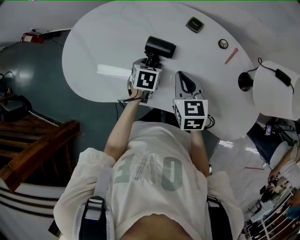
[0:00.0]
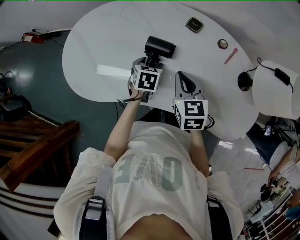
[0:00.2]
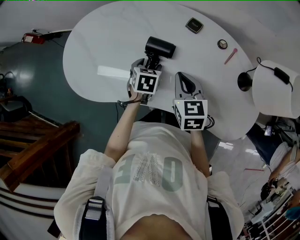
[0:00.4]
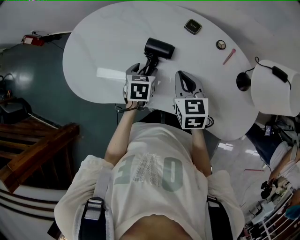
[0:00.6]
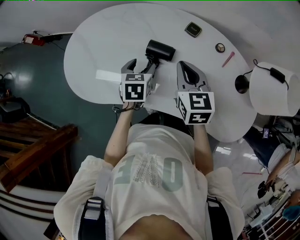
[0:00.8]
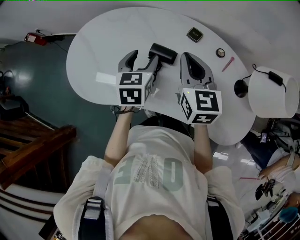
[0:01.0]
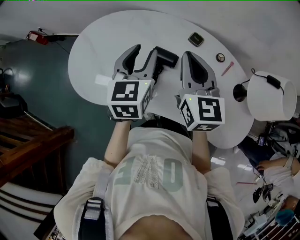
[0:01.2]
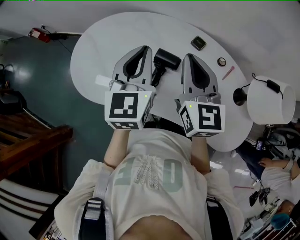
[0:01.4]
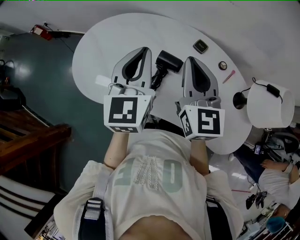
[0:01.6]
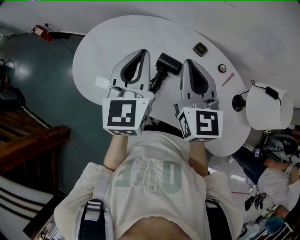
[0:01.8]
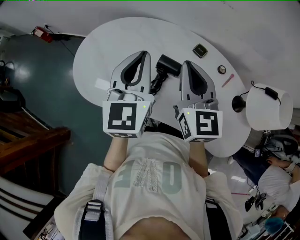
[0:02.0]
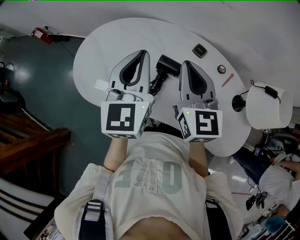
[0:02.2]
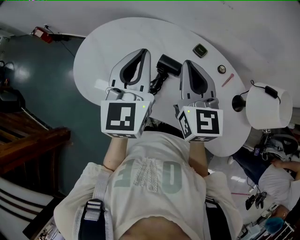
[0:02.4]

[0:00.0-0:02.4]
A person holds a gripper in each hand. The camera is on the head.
0:00.0 to 0:01.2: The right gripper goes approximately 15 cm upward, and changes its angle by approximately 20 degrees. Meanwhile the left gripper moves upward, approximately 25 cm, and tilts its fingers about 40 degrees upward.
0:01.2 to 0:02.4: The left gripper travels upward by approximately 10 cm, and closes its fingers.

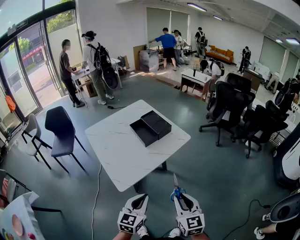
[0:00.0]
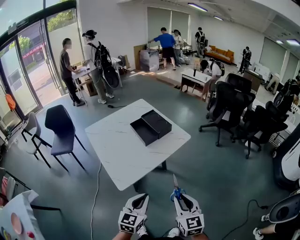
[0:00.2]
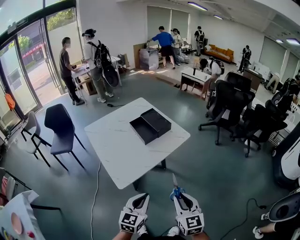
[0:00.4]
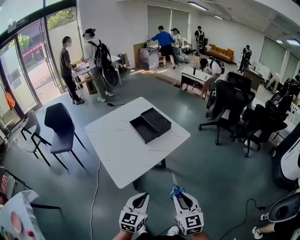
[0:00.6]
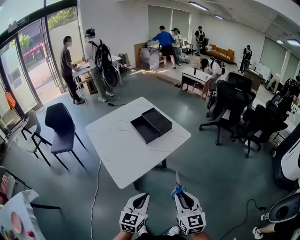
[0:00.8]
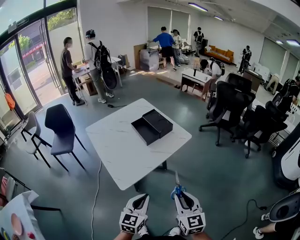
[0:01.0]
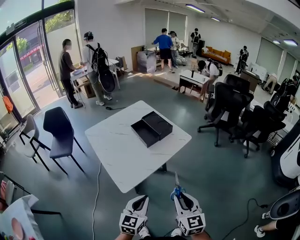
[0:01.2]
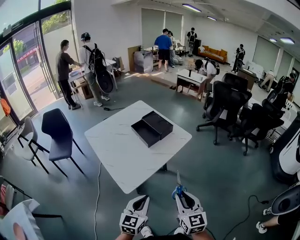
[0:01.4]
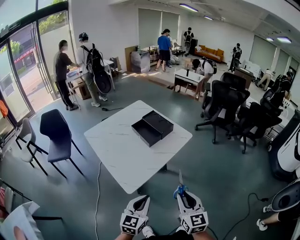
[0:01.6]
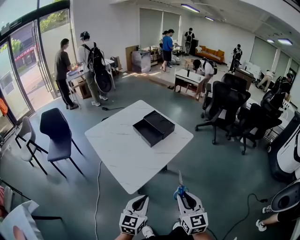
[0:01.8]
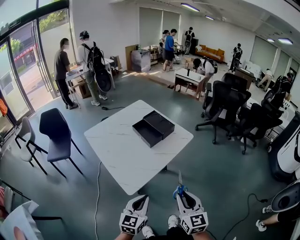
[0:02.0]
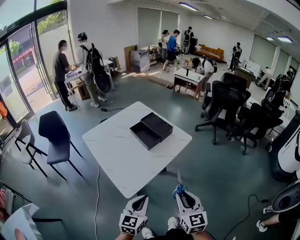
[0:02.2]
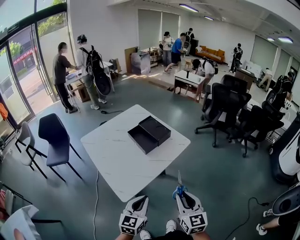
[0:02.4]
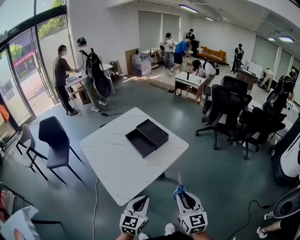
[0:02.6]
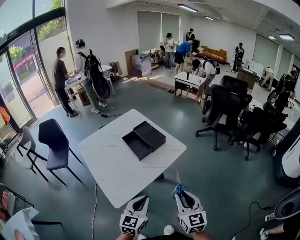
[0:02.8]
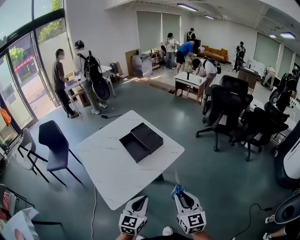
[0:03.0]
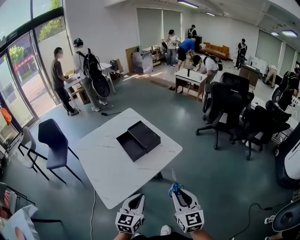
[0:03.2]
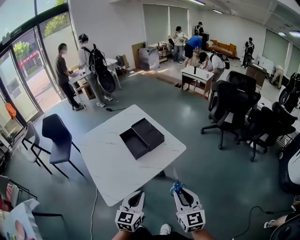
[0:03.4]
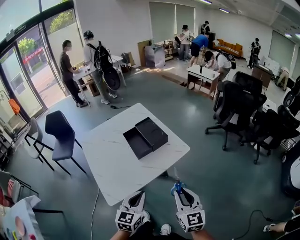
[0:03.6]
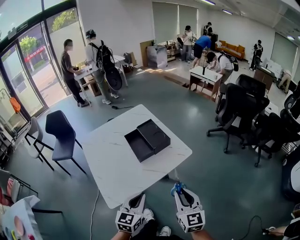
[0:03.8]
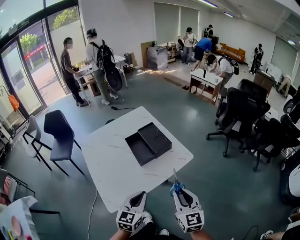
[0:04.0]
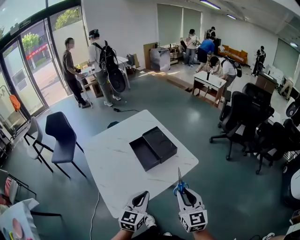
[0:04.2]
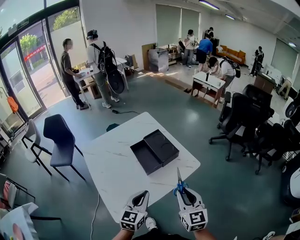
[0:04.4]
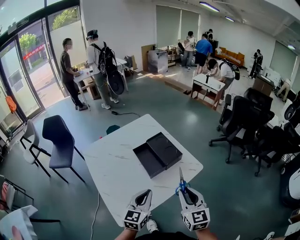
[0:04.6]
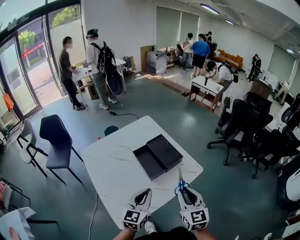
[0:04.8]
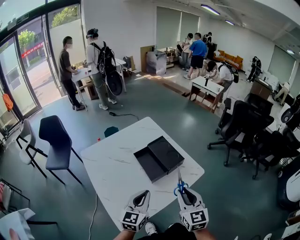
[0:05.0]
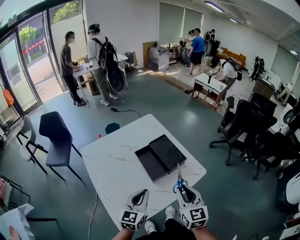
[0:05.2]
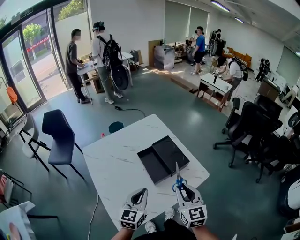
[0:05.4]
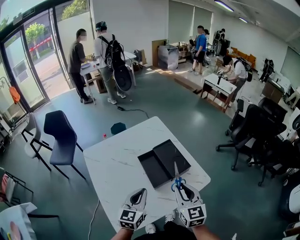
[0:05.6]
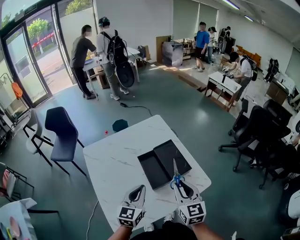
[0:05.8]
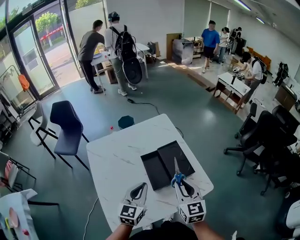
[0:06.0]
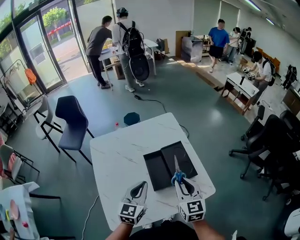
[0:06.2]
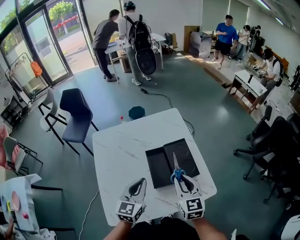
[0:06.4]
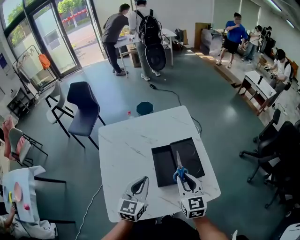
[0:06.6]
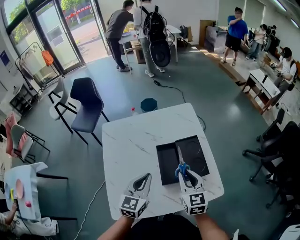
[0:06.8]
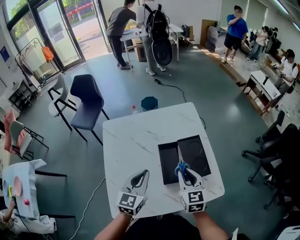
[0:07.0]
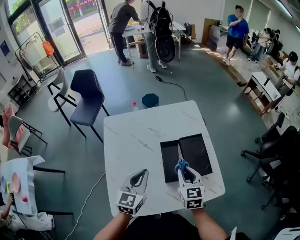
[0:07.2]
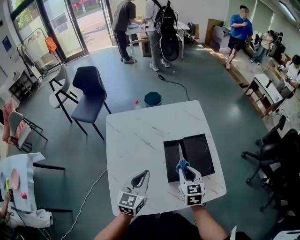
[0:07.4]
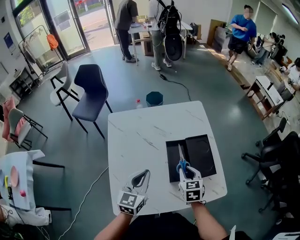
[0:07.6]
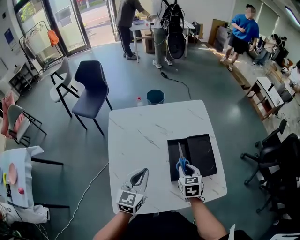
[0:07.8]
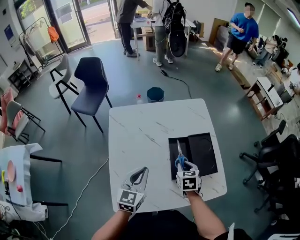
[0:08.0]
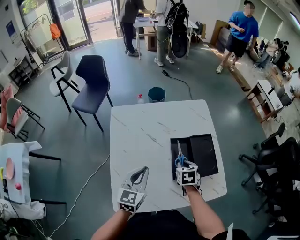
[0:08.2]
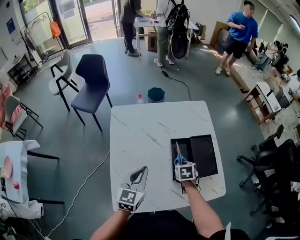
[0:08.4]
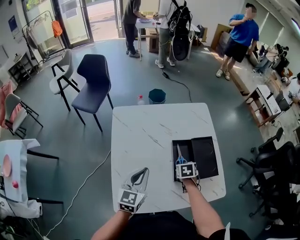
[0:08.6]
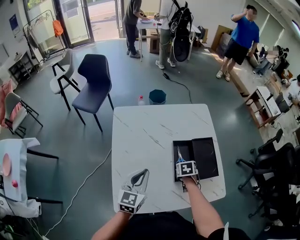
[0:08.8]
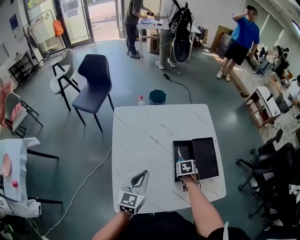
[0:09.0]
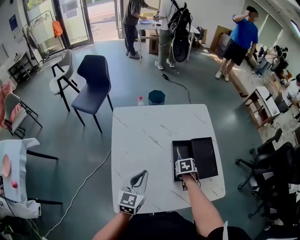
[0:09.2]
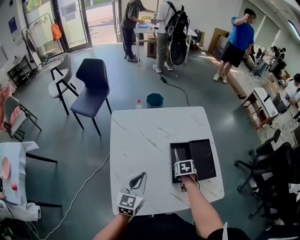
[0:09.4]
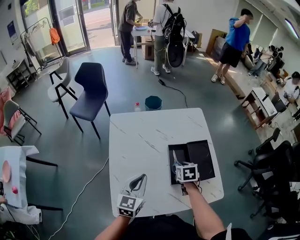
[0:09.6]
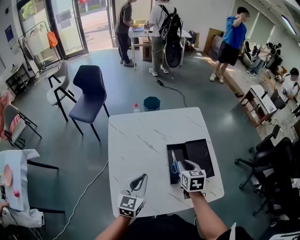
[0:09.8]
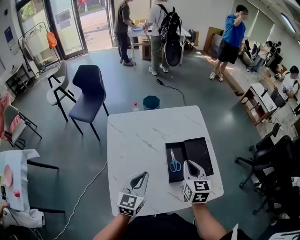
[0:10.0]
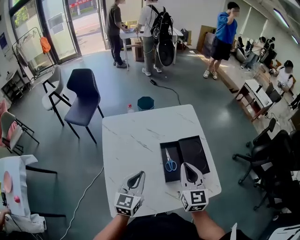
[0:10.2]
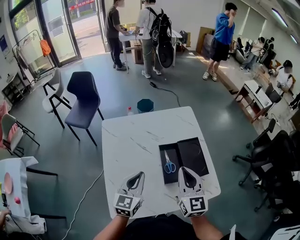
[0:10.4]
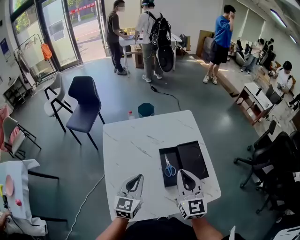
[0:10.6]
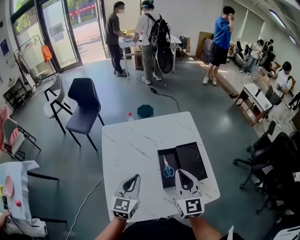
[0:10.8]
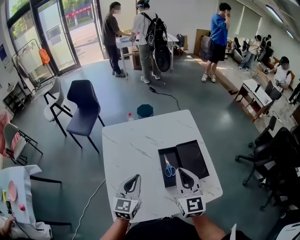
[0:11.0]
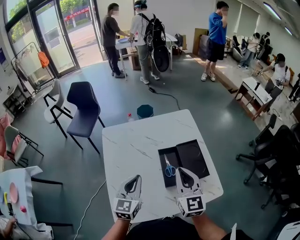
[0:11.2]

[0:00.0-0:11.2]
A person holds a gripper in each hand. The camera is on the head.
0:00.0 to 0:01.6: Both grippers travel together to the left, some 5 cm.
0:01.6 to 0:03.2: The two grippers go approximately 20 cm forward and to the right.
0:03.2 to 0:04.8: Both grippers travel together forward and to the left, some 20 cm.
0:04.8 to 0:06.4: The grippers both shift forward by roughly 15 cm. The left gripper changes its angle by some 20 degrees, while the right gripper rotates roughly 20 degrees.
0:06.4 to 0:08.0: The right gripper is displaced downward, to the left and forward by some 15 cm, and angles its fingers downward, by some 30 degrees. The left gripper heads to the left, covering about 10 cm.
0:08.0 to 0:09.6: The right gripper reaches approximately 10 cm downward, then returns.
0:09.6 to 0:11.2: The right gripper heads upward, covering approximately 20 cm, tips its fingers upward by approximately 50 degrees, and closes up; the left gripper moves some 5 cm.

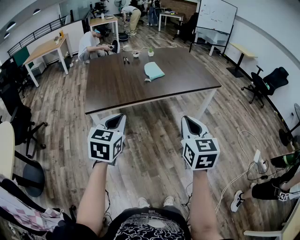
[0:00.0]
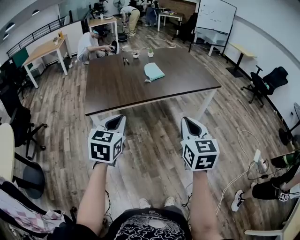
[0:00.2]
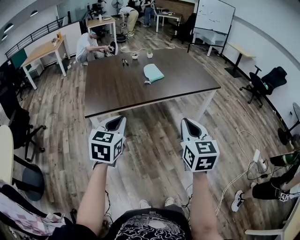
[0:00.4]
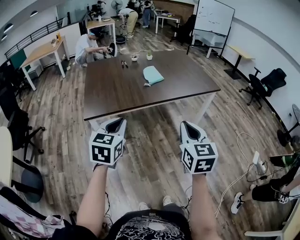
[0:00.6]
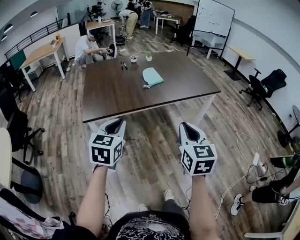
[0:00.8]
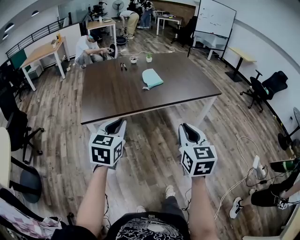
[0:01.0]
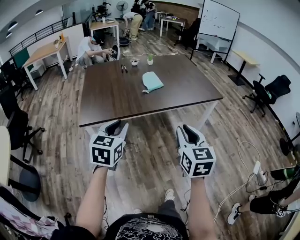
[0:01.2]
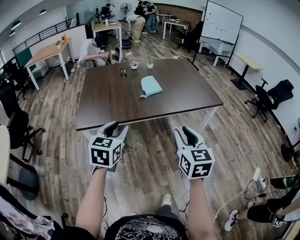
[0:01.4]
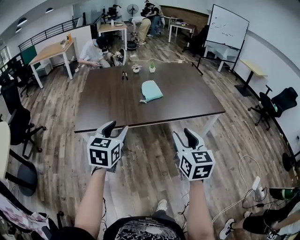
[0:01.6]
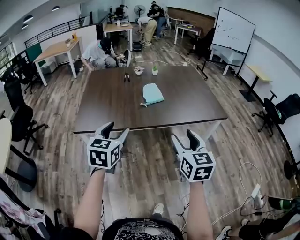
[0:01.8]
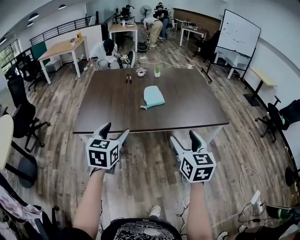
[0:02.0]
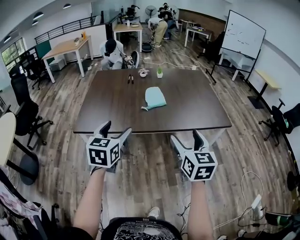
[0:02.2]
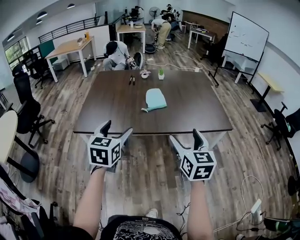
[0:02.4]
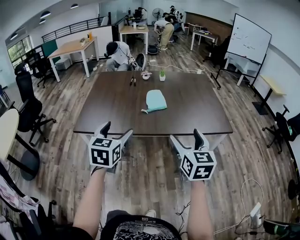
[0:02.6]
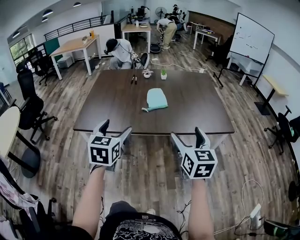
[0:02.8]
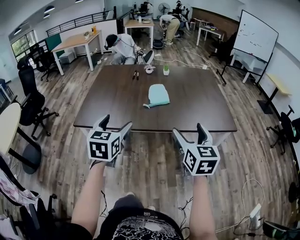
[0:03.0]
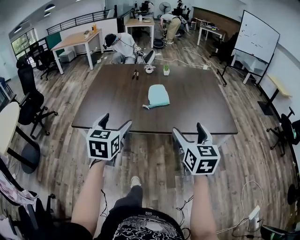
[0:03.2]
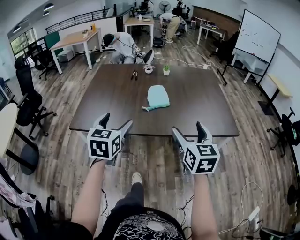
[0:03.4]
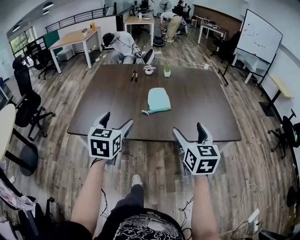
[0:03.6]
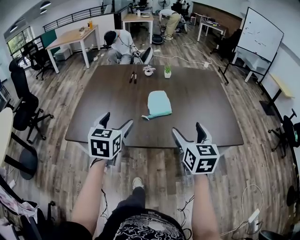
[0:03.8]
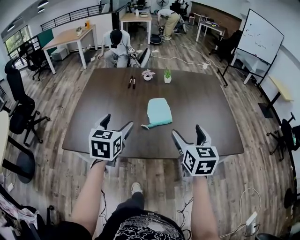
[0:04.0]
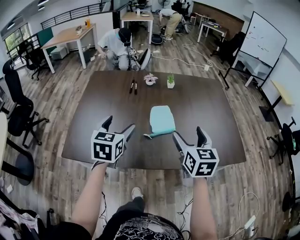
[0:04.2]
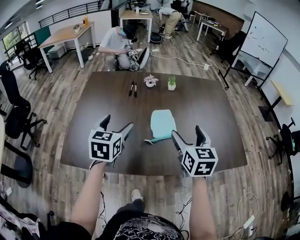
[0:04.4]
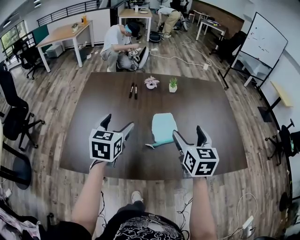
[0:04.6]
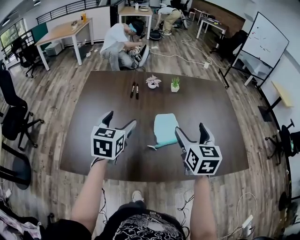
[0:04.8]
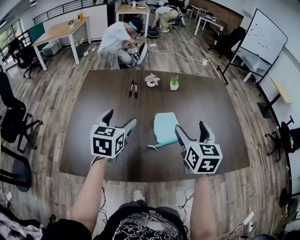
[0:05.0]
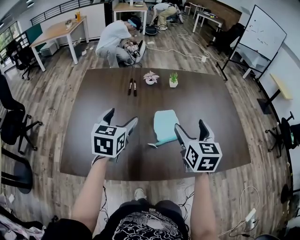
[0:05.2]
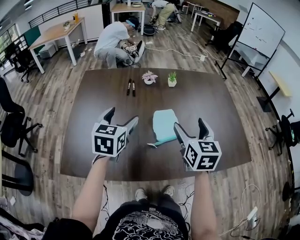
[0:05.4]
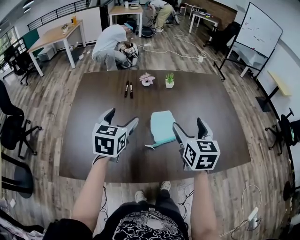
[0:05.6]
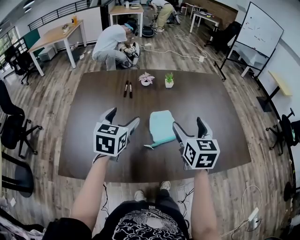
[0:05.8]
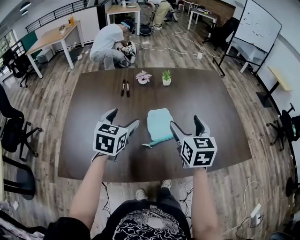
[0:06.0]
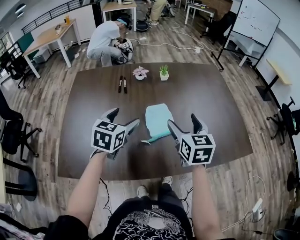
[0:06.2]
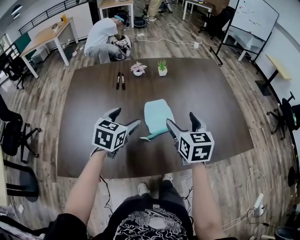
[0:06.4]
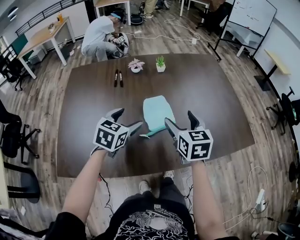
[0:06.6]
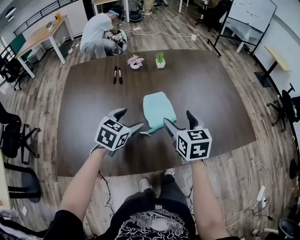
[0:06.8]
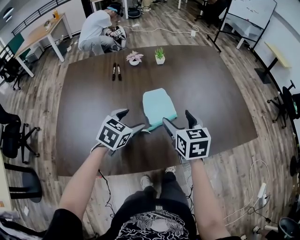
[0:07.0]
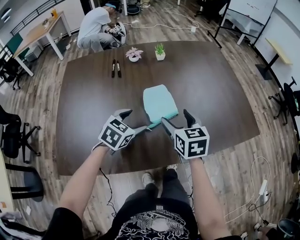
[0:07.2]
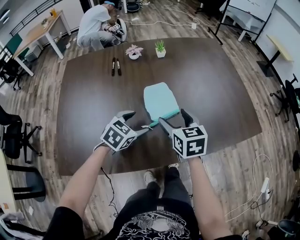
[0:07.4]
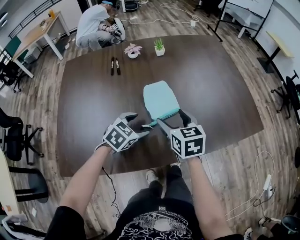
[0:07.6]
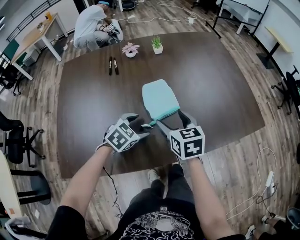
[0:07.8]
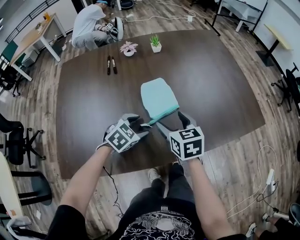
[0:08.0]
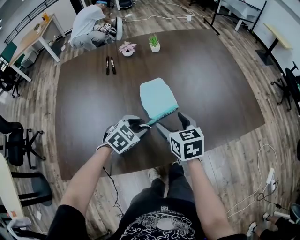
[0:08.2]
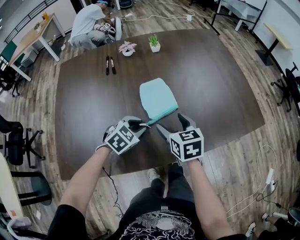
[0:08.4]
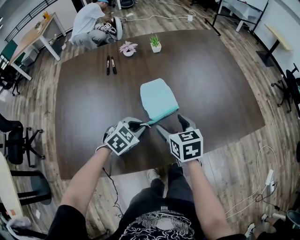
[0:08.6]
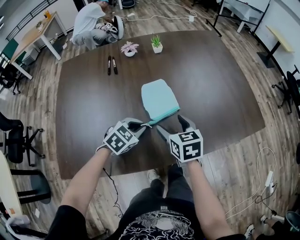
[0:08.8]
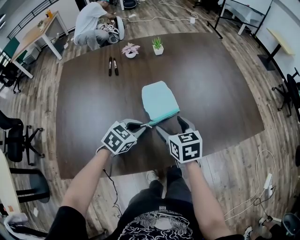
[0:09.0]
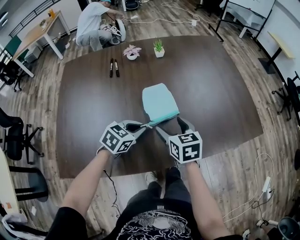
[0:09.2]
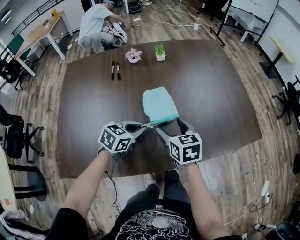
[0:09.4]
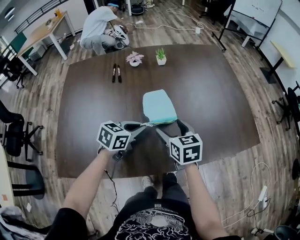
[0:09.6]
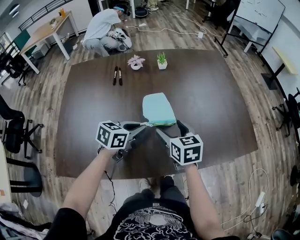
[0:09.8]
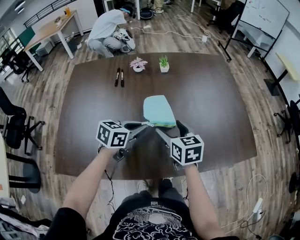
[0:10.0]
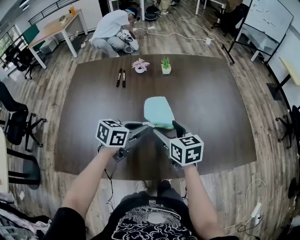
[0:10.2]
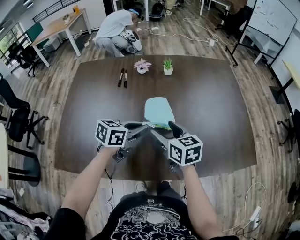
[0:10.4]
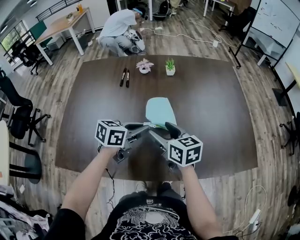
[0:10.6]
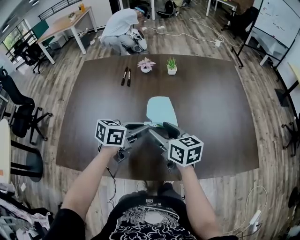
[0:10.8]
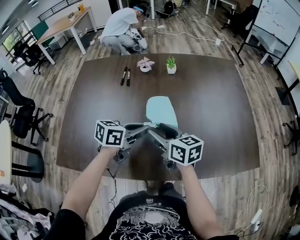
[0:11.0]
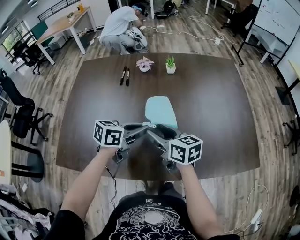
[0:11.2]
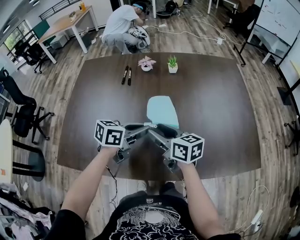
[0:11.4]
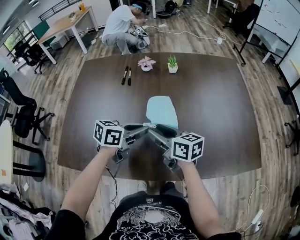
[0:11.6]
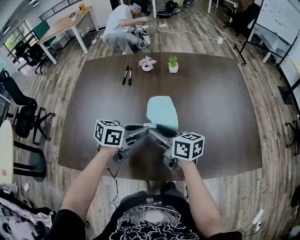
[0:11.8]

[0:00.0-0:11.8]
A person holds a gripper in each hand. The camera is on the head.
0:00.0 to 0:01.4: The grippers both shift forward by some 10 cm.
0:01.4 to 0:03.0: The left gripper moves forward and to the right, approximately 15 cm, and opens up, while the right gripper shifts about 20 cm forward and to the right, and opens its fingers.
0:03.0 to 0:04.4: Both grippers travel together forward, approximately 30 cm.
0:04.4 to 0:06.0: The grippers both shift forward by roughly 10 cm.
0:06.0 to 0:07.4: The right gripper shifts approximately 10 cm downward; the left gripper shifts approximately 15 cm downward and to the right, and changes its angle by some 30 degrees.
0:07.4 to 0:08.8: The left gripper closes its fingers. Meanwhile the right gripper ends up approximately 5 cm from where it was.
0:08.8 to 0:10.4: The right gripper shifts approximately 5 cm upward; the left gripper heads upward and forward, covering approximately 10 cm, and swivels some 40 degrees.
0:10.4 to 0:11.8: The right gripper rotates approximately 20 degrees, and closes up.
